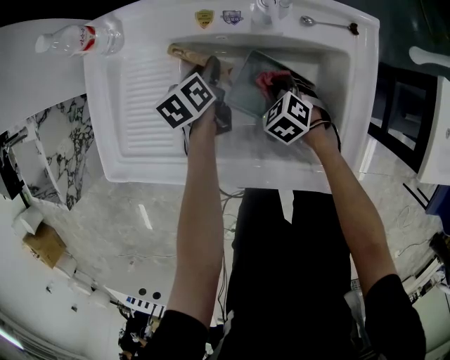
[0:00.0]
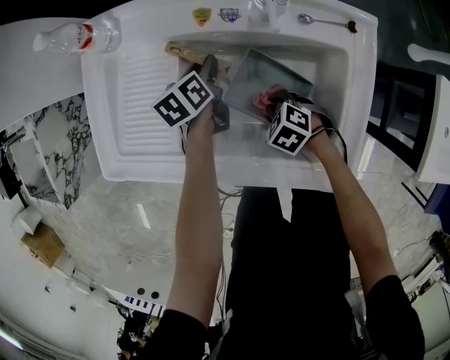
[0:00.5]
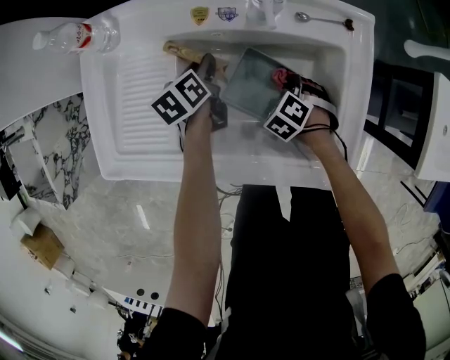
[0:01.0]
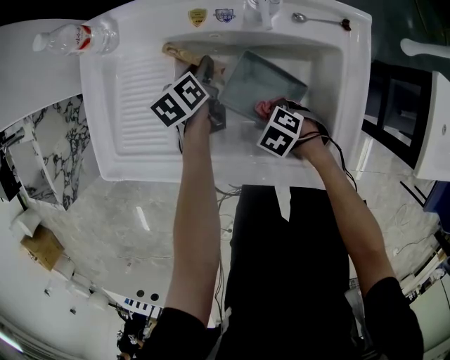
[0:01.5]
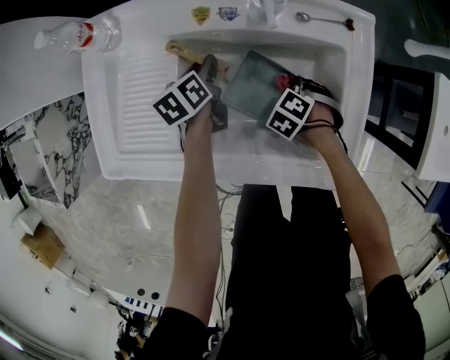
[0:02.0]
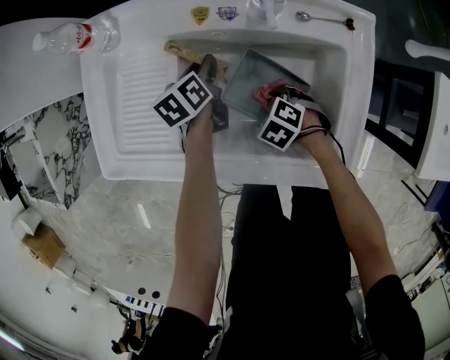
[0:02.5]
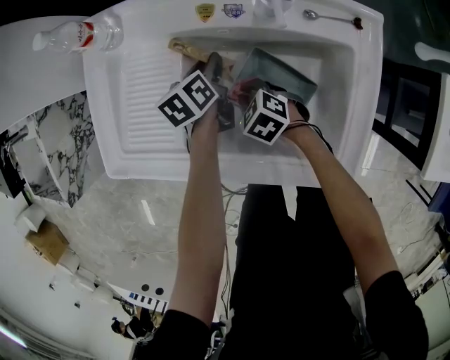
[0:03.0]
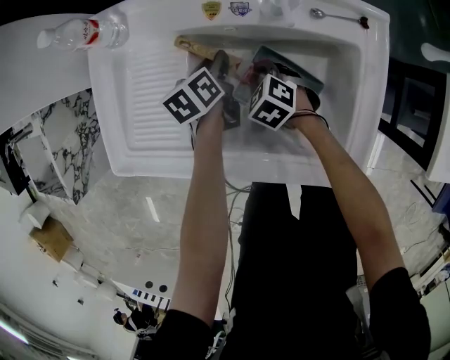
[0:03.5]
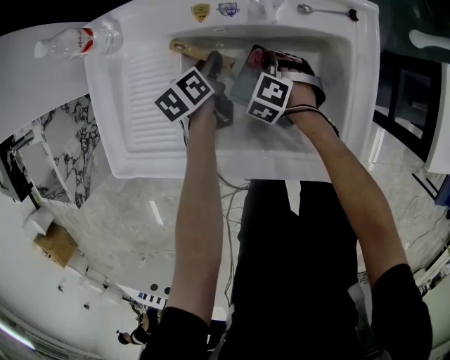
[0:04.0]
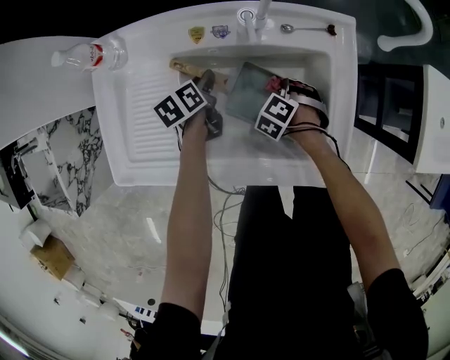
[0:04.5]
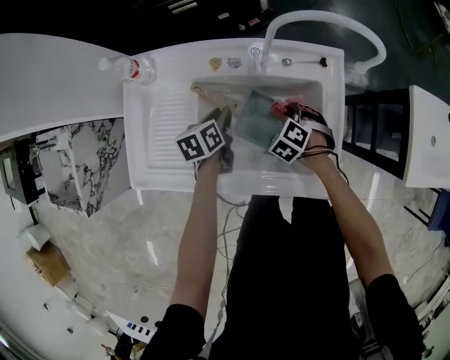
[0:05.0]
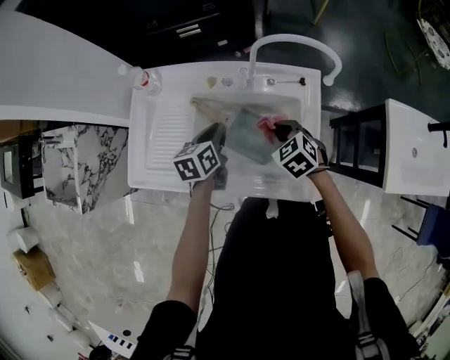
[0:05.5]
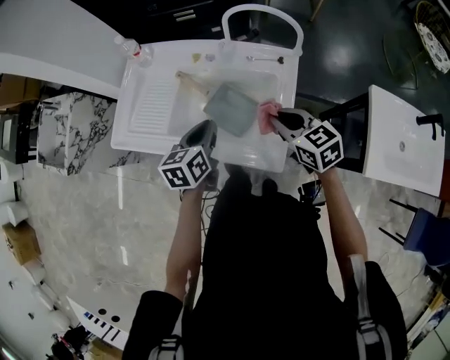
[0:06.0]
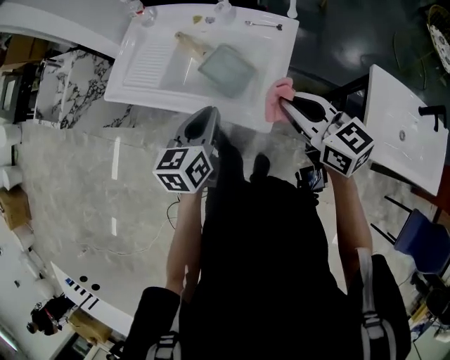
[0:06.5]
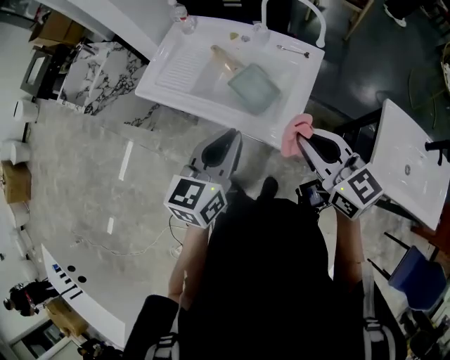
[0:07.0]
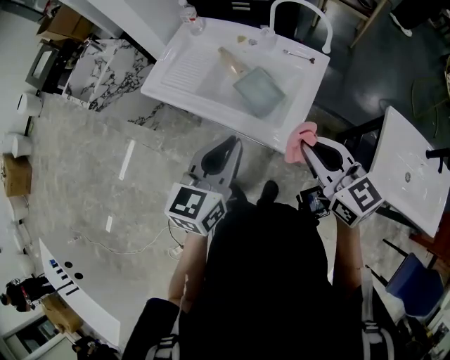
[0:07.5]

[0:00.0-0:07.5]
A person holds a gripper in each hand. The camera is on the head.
0:00.0 to 0:02.0: The right gripper ends up roughly 5 cm from where it was, and turns by approximately 20 degrees.
0:04.0 to 0:05.5: The grippers both shift upward by roughly 20 cm. The right gripper turns by about 30 degrees; the left gripper closes up.
0:05.5 to 0:07.5: The two grippers go approximately 40 cm backward and upward. The left gripper swivels about 30 degrees; the right gripper angles its fingers upward, by about 40 degrees.

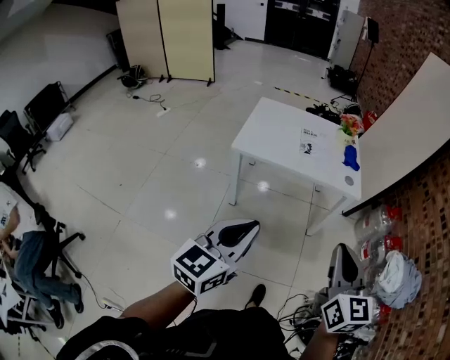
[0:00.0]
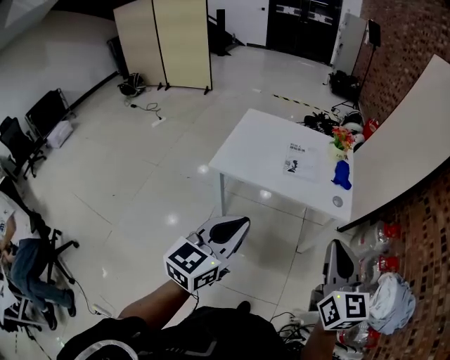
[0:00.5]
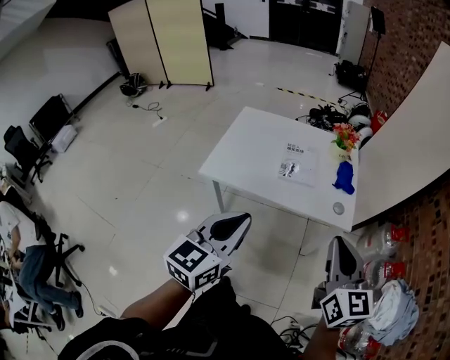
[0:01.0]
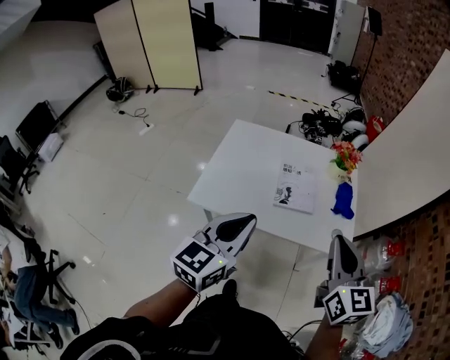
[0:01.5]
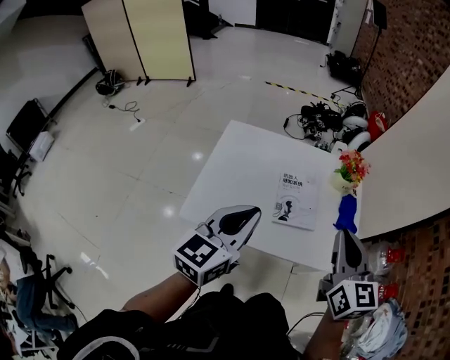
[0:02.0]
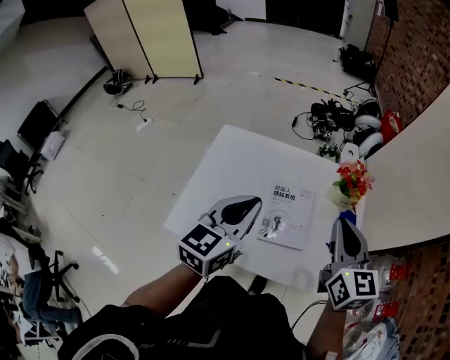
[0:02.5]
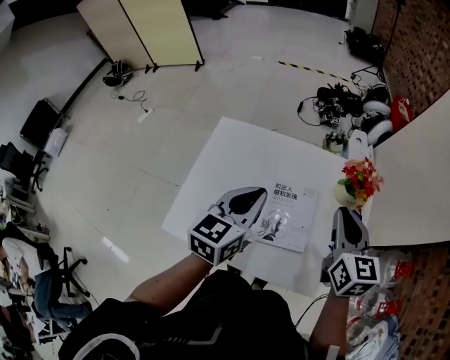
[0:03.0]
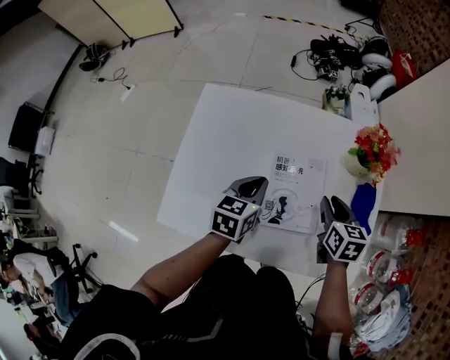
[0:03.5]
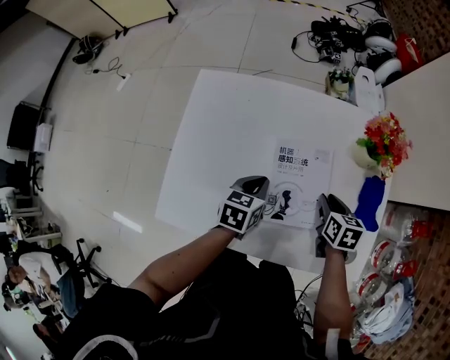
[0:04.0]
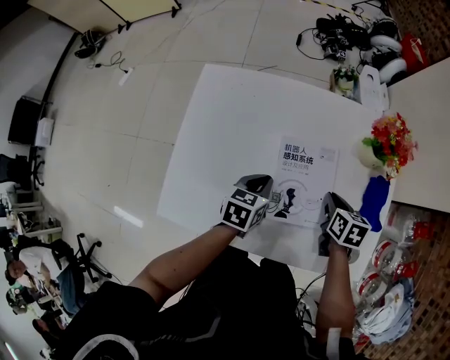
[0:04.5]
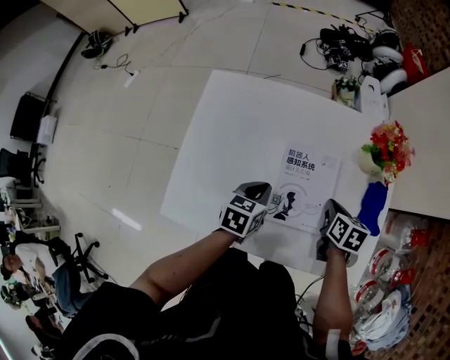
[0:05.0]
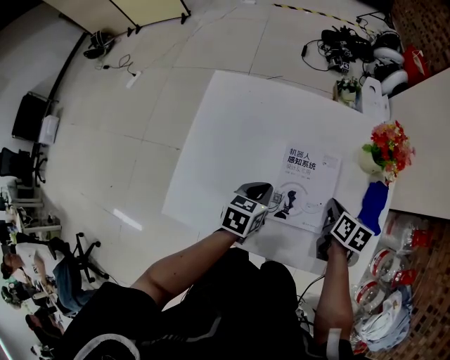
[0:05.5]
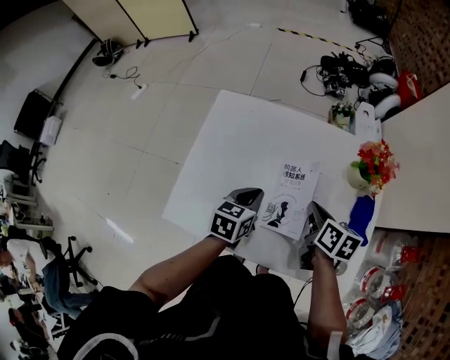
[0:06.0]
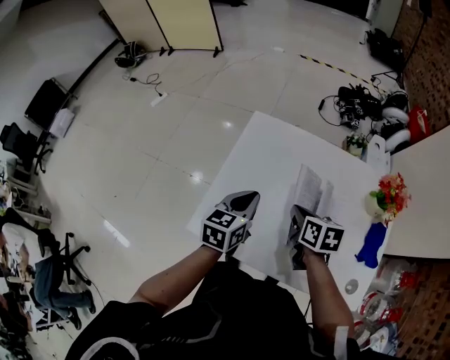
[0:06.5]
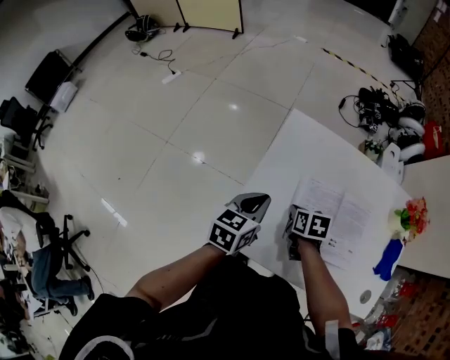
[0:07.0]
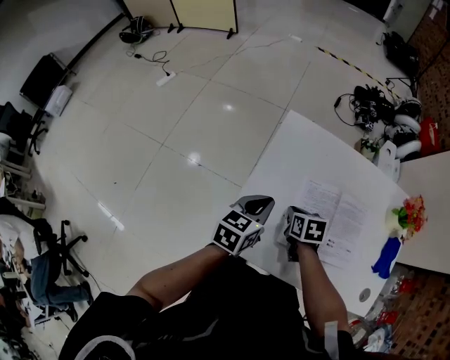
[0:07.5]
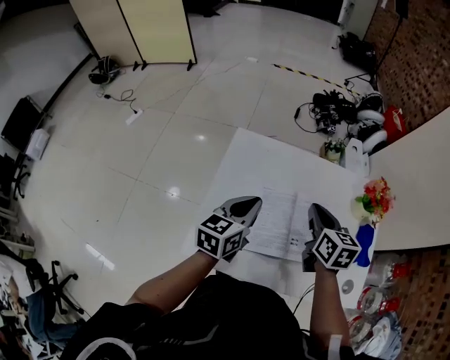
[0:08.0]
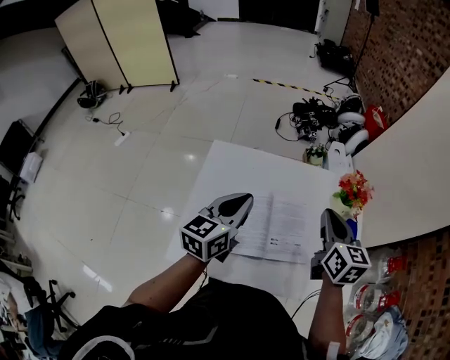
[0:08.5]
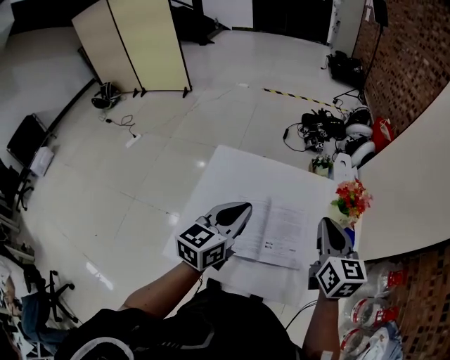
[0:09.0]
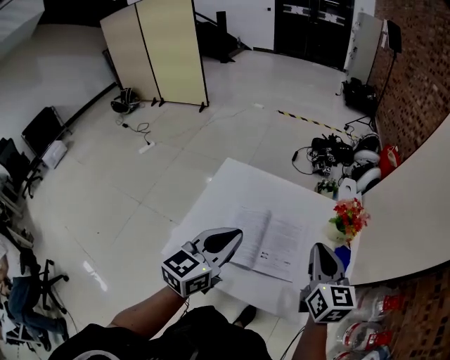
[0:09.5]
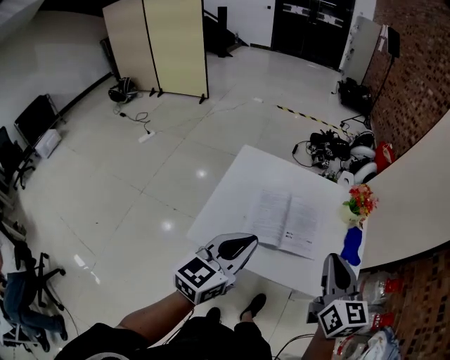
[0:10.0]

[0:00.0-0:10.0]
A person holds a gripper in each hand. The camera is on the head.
0:00.0 to 0:02.0: Both grippers are carried forward, roughly 50 cm.
0:02.0 to 0:04.0: The grippers both shift downward and forward by some 40 cm. The left gripper angles its fingers downward, by roughly 40 degrees. The right gripper tips its fingers downward by about 40 degrees.
0:04.0 to 0:06.0: The left gripper is displaced upward by roughly 5 cm; the right gripper shifts about 10 cm upward and to the left.
0:06.0 to 0:08.0: The right gripper moves to the left, upward and forward, roughly 15 cm, and changes its angle by about 20 degrees, while the left gripper moves to the left and upward, roughly 15 cm.
0:08.0 to 0:10.0: The grippers both shift backward and upward by some 25 cm. The right gripper swivels approximately 20 degrees.

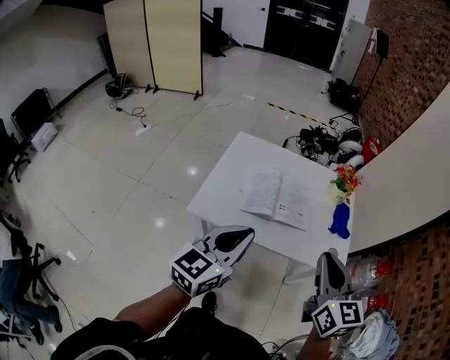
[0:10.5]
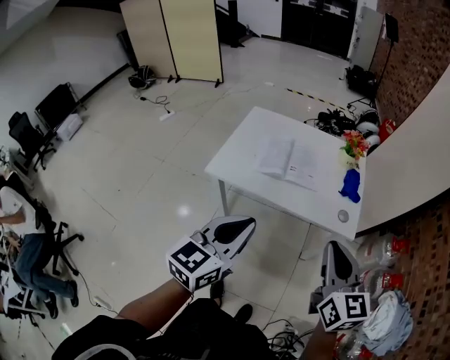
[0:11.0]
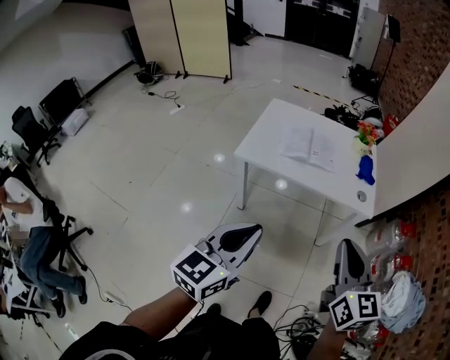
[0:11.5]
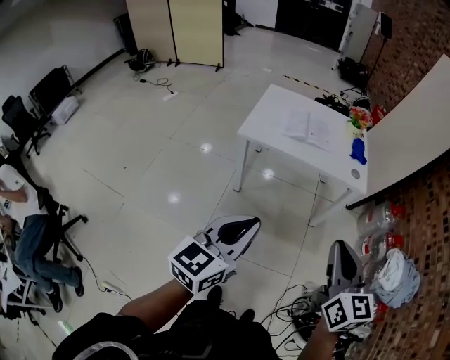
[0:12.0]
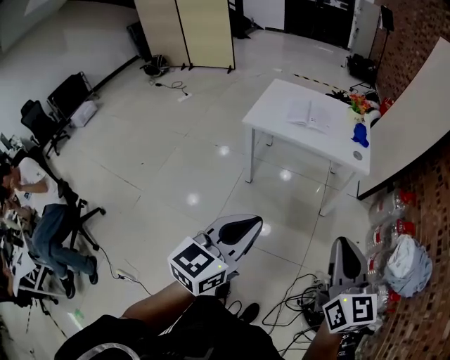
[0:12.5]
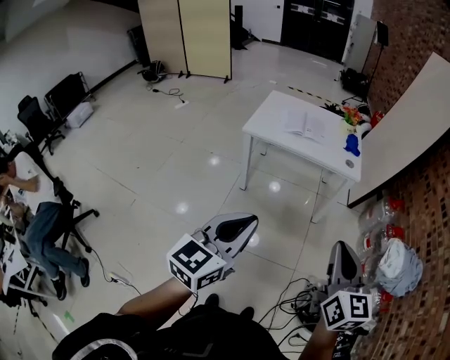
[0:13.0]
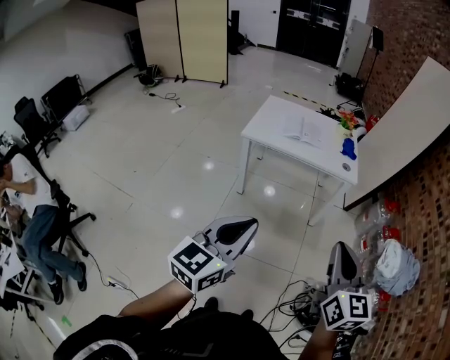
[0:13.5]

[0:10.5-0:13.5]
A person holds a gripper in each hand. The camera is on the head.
0:10.5 to 0:12.0: The pair of grippers is taken backward, about 40 cm.
0:12.0 to 0:13.5: The left gripper goes roughly 15 cm backward. Meanwhile the right gripper is displaced backward and to the right by about 15 cm.

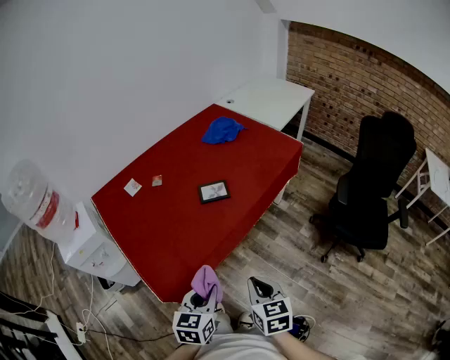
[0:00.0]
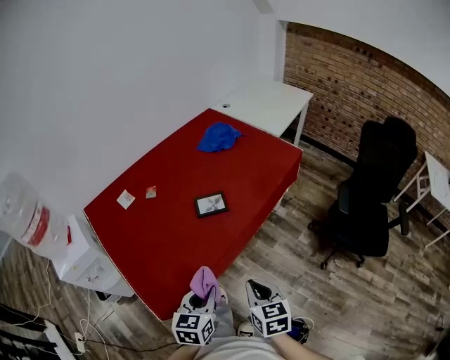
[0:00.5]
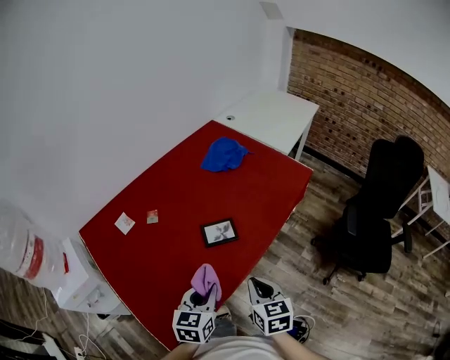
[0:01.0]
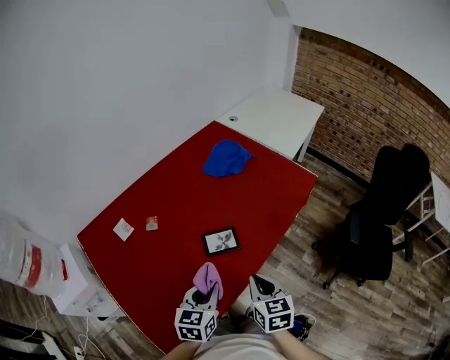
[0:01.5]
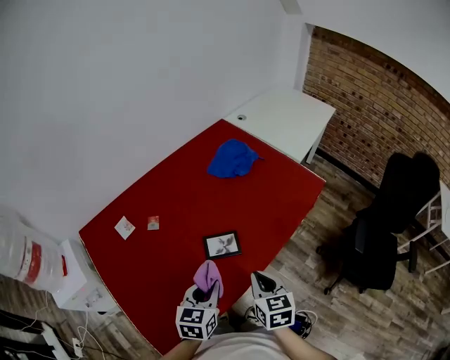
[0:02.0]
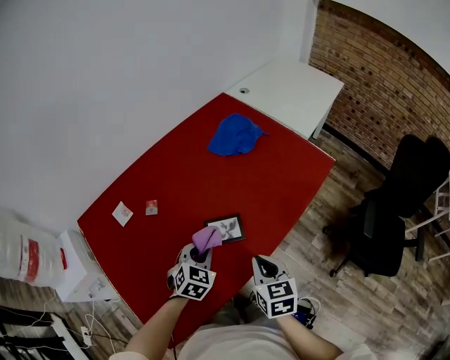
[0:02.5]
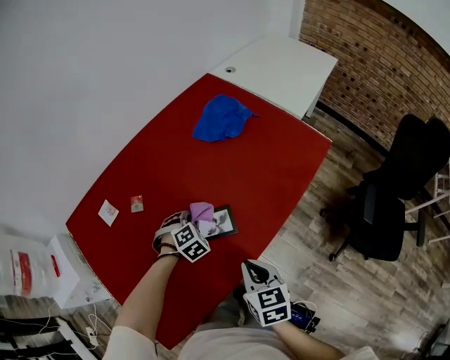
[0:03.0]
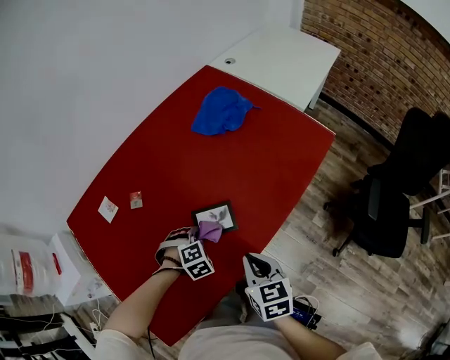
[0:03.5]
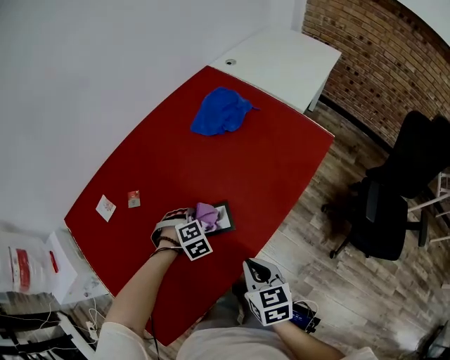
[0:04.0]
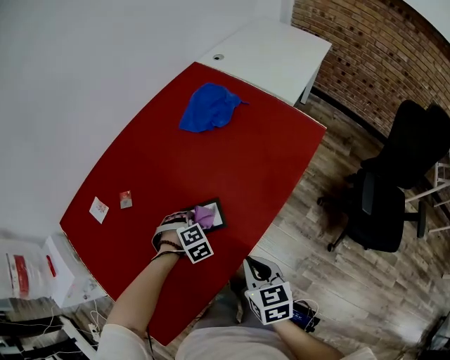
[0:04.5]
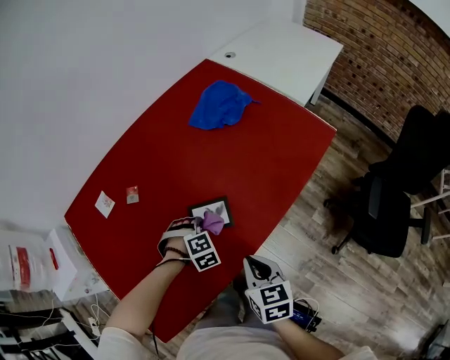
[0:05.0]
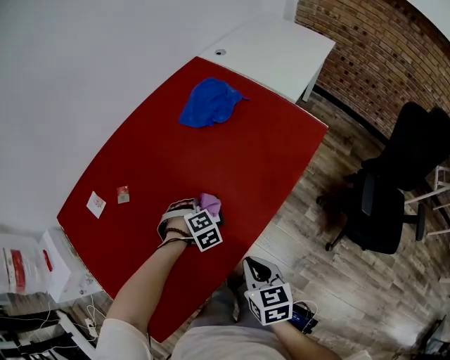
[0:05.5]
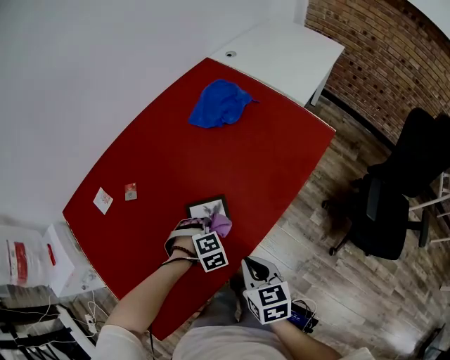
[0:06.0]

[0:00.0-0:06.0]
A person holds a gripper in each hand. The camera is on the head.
0:00.0 to 0:02.0: Both grippers travel together forward, approximately 30 cm.
0:02.0 to 0:04.0: The left gripper travels downward and forward by approximately 25 cm, and rolls clockwise, seen from behind, by about 70 degrees. Meanwhile the right gripper goes some 5 cm downward.
0:04.0 to 0:06.0: The left gripper moves forward and backward over roughly 5 cm, changing direction 2 times.
